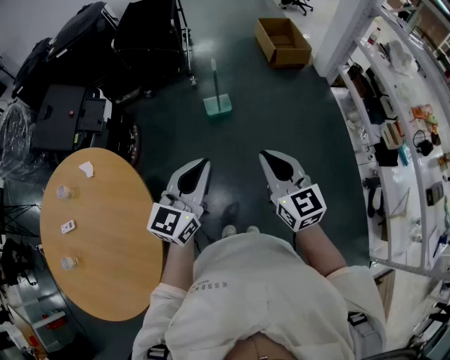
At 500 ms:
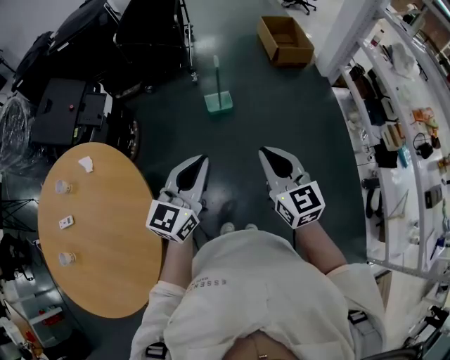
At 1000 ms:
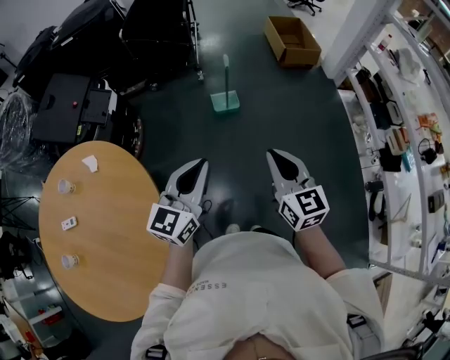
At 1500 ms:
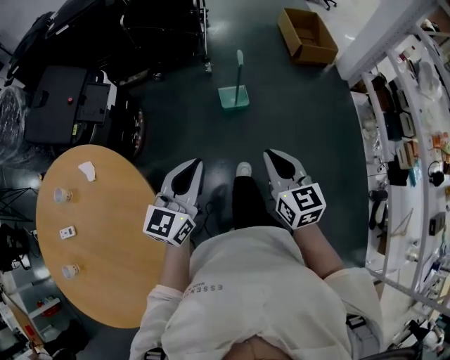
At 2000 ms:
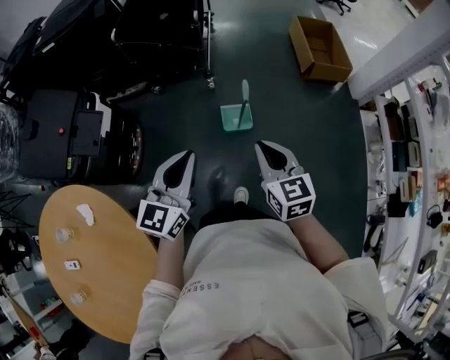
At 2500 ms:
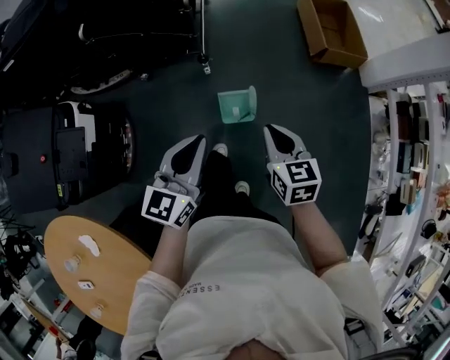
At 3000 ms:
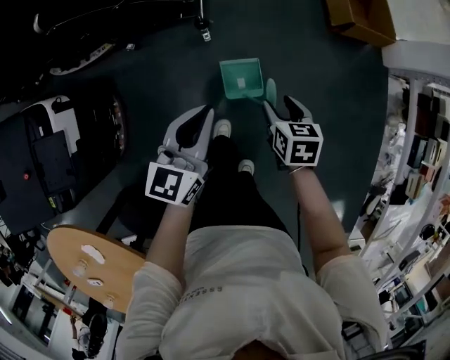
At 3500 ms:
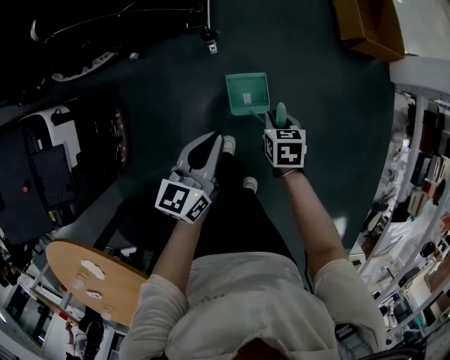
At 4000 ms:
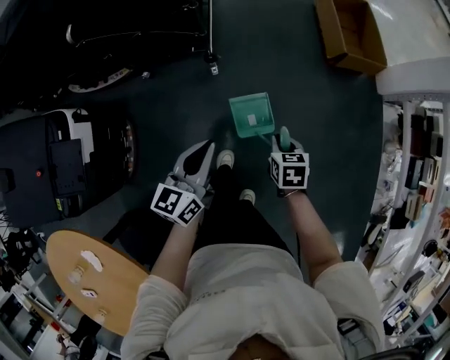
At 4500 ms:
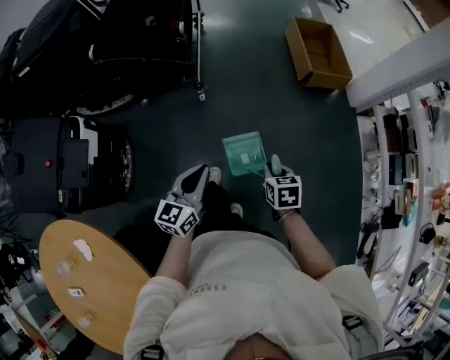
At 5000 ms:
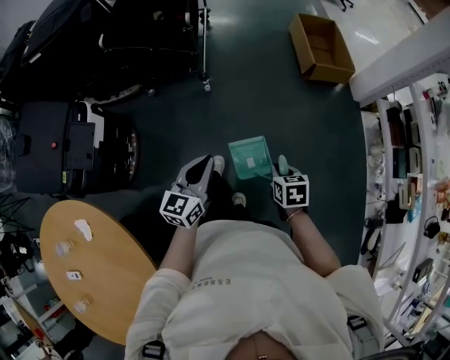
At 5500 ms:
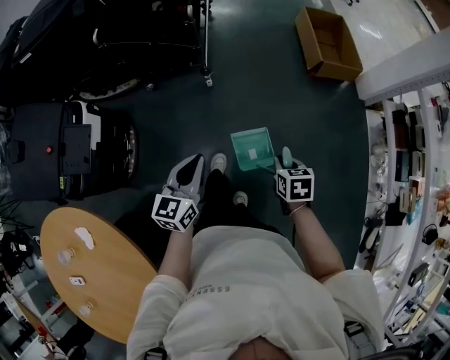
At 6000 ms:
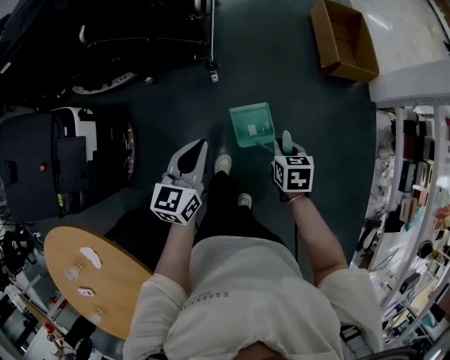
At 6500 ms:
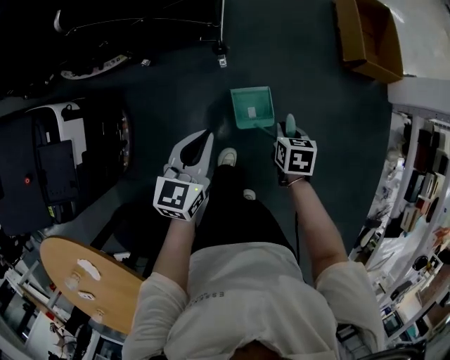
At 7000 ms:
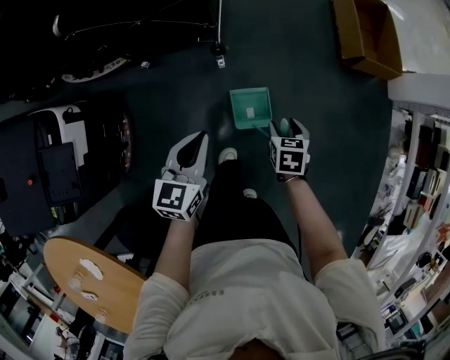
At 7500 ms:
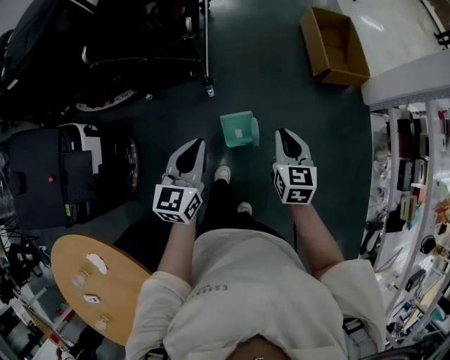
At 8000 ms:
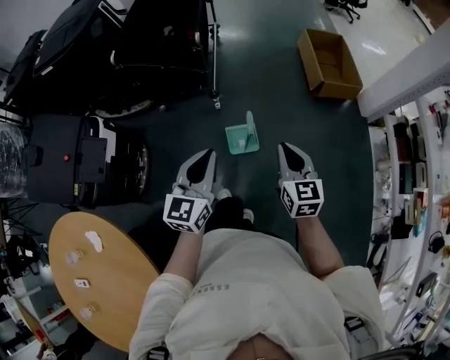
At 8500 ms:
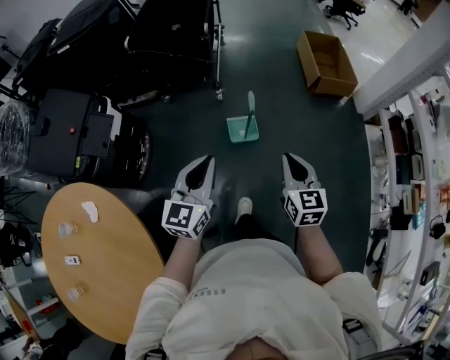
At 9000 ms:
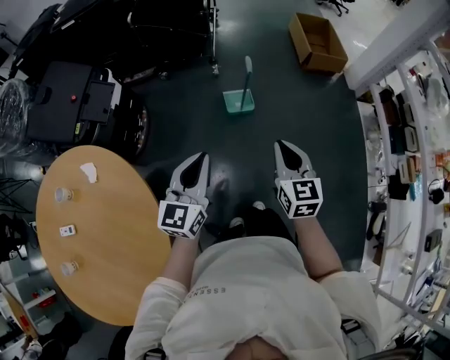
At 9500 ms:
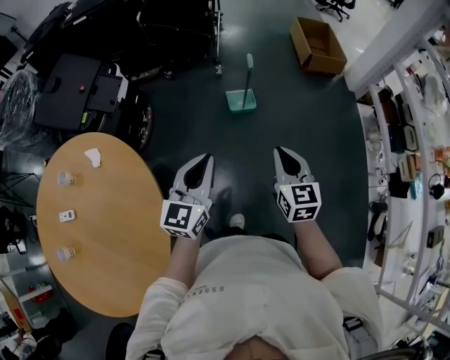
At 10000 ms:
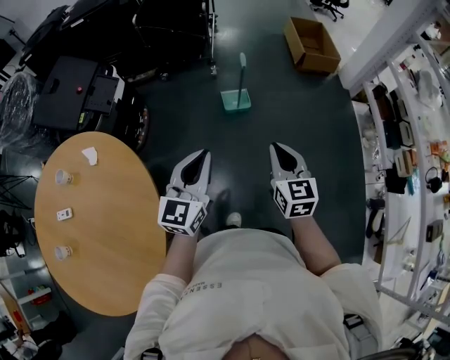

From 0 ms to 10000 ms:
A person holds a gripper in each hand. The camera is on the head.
From 0 ms to 2000 ms: Both grippers travel together forward, some 40 cm.
From 2000 ms to 4000 ms: The right gripper moves downward and forward, about 40 cm, tips its fingers downward by some 30 degrees, and opens, then closes once more, while the left gripper shifts some 35 cm forward and downward, and changes its angle by approximately 20 degrees.
From 4000 ms to 6000 ms: The left gripper travels backward and back again, some 20 cm each way, while the right gripper travels upward by approximately 5 cm, and travels backward and back again, about 20 cm each way.
From 6000 ms to 8000 ms: The left gripper heads upward, backward and to the right, covering approximately 20 cm; the right gripper heads upward and backward, covering approximately 20 cm, tips its fingers upward by some 40 degrees, and opens, then closes again.
From 8000 ms to 10000 ms: Both grippers are carried backward, about 40 cm.

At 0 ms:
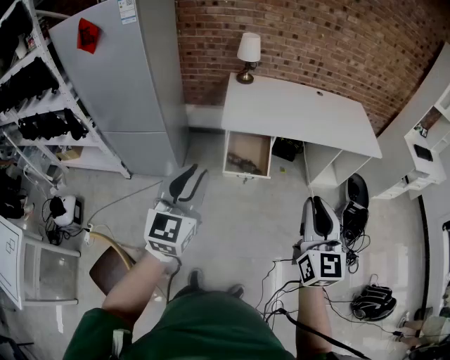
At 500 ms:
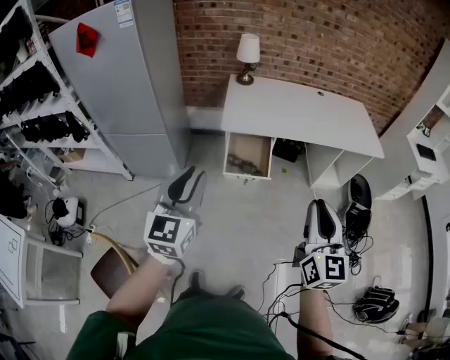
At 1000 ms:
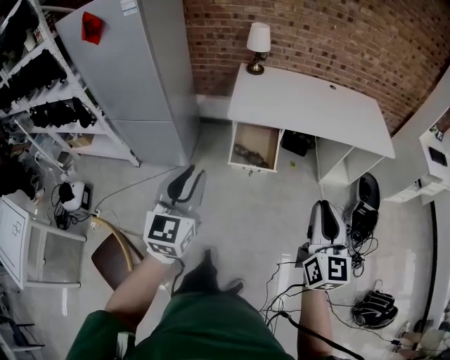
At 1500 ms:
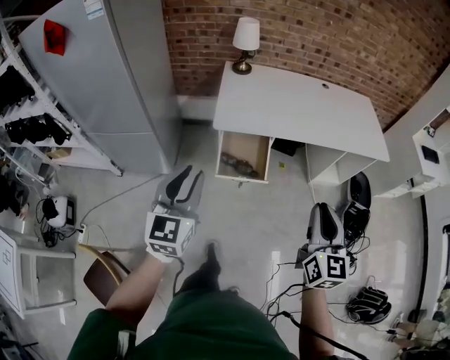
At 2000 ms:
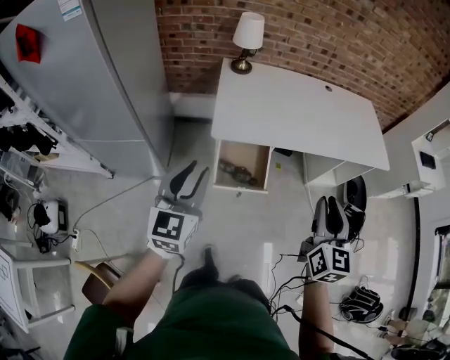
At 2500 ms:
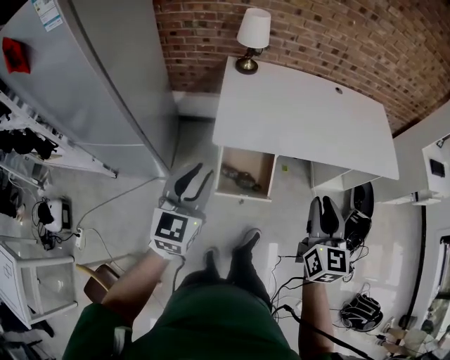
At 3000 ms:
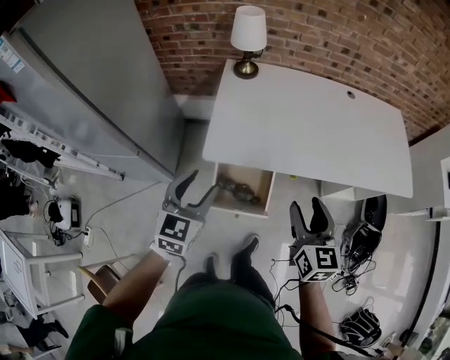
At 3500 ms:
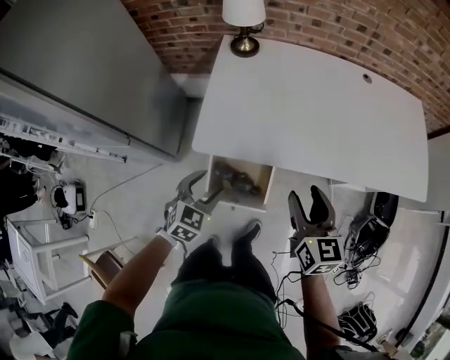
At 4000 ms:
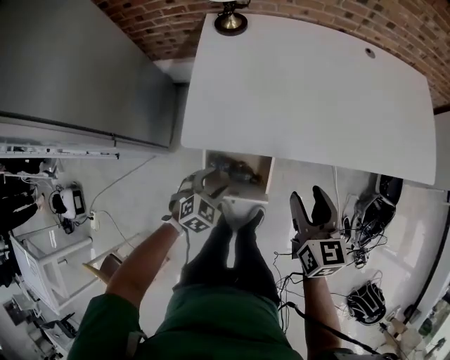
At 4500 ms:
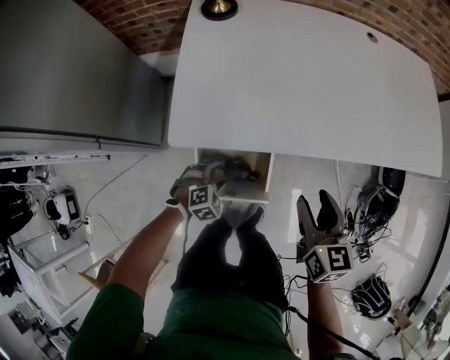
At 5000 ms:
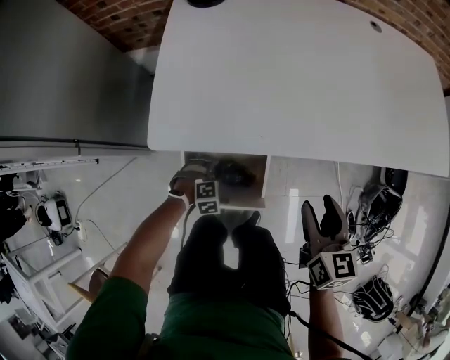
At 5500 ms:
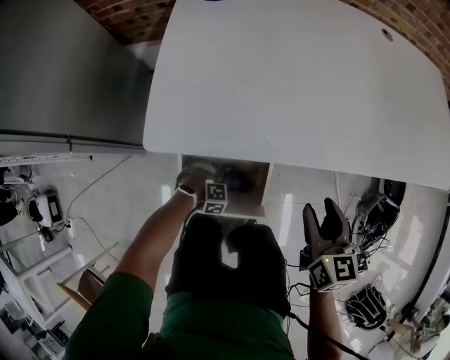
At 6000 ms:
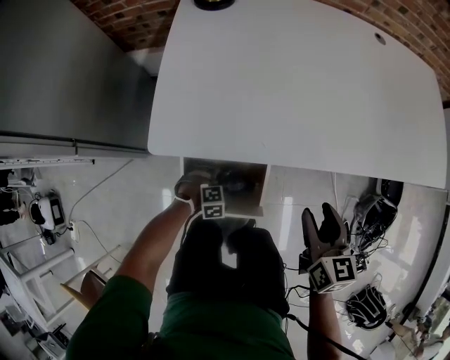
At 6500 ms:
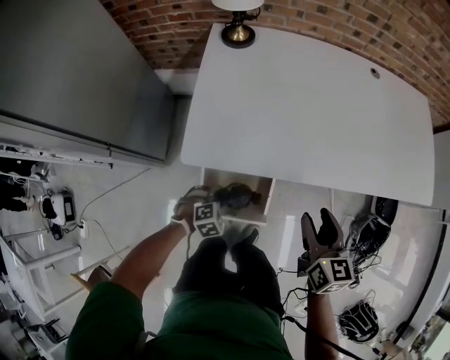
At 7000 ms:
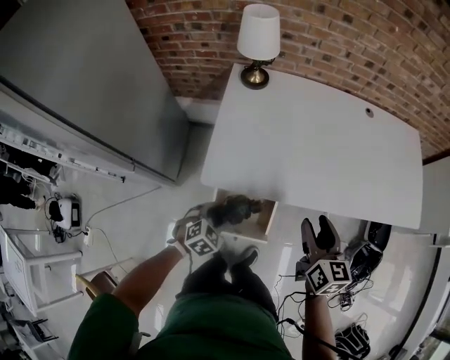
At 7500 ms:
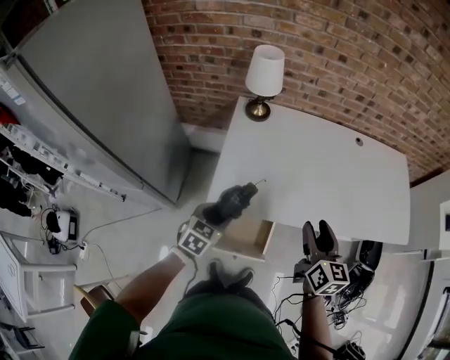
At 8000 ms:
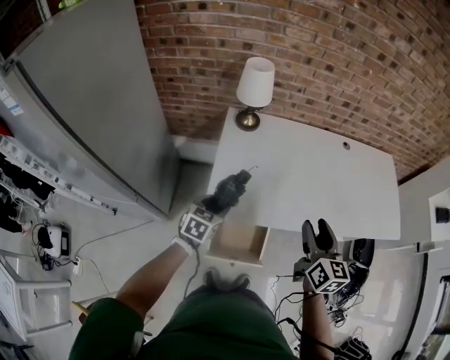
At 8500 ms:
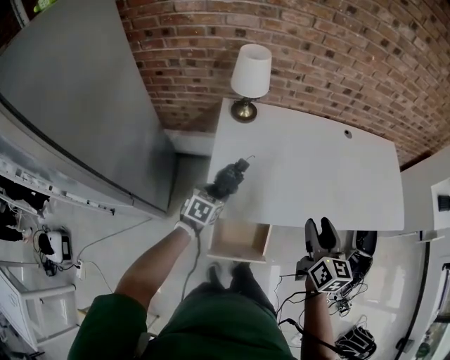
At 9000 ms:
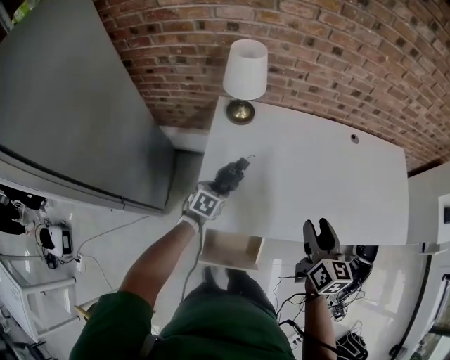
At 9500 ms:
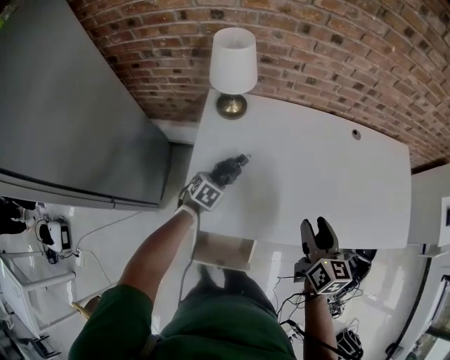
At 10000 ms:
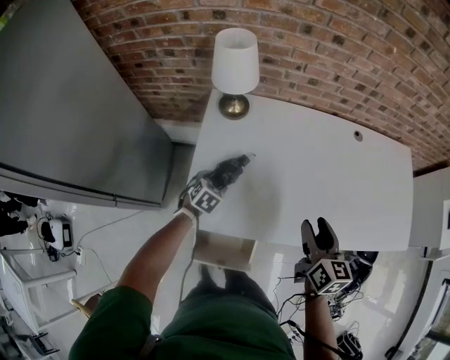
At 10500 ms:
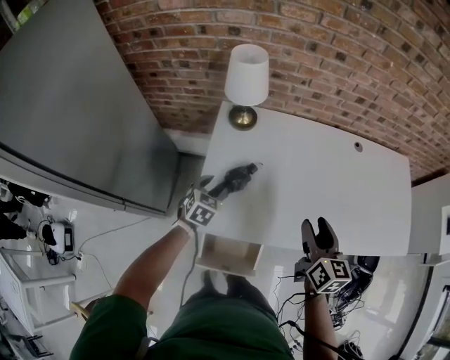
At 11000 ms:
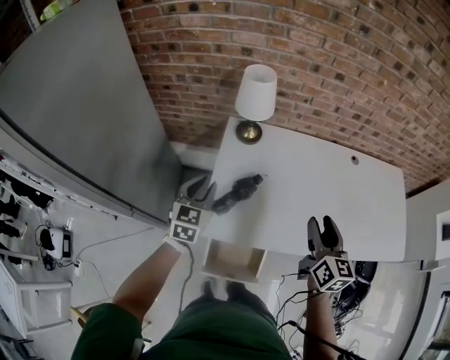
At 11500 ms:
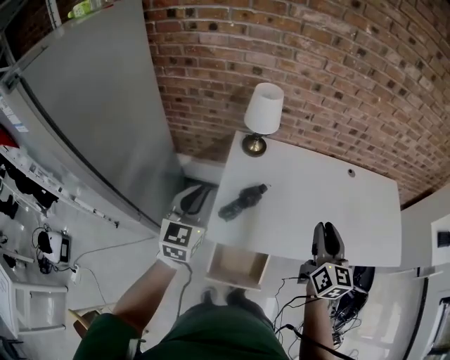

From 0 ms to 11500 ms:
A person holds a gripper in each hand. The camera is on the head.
From 0 ms to 2000 ms: The two grippers go some 25 cm forward.
From 2000 ms to 4000 ms: The left gripper travels downward, forward and to the right by about 50 cm, tips its fingers downward by approximately 50 degrees, and opens its fingers. The right gripper goes approximately 40 cm forward and downward, turns by some 30 degrees, and opens up.
From 4000 ms to 6000 ms: The left gripper shifts some 30 cm downward, and rotates about 40 degrees; the right gripper goes some 15 cm downward.
From 6000 ms to 7500 ms: The right gripper heads upward, covering roughly 30 cm. The left gripper shifts about 50 cm upward, and rolls counterclockwise, seen from behind, by roughly 50 degrees.
From 7500 ms to 9500 ms: The left gripper is displaced forward and downward by about 30 cm, and turns by approximately 20 degrees; the right gripper shifts roughly 15 cm forward and downward.
From 9500 ms to 11500 ms: The left gripper is displaced upward by approximately 35 cm, tips its fingers upward by some 50 degrees, and closes up. The right gripper is displaced upward, to the left and backward by roughly 15 cm, and closes.

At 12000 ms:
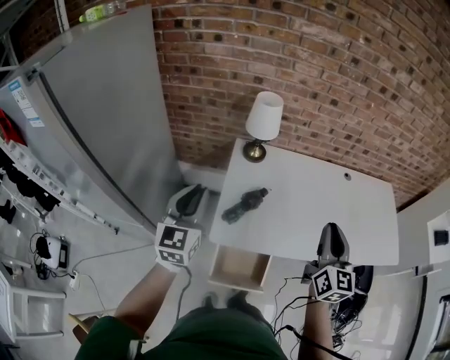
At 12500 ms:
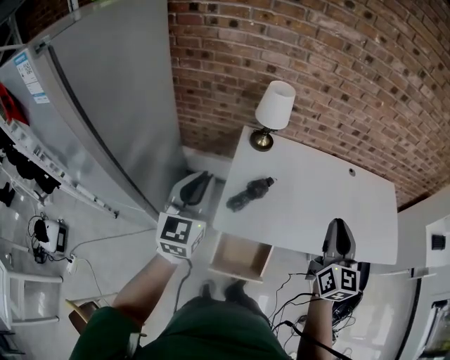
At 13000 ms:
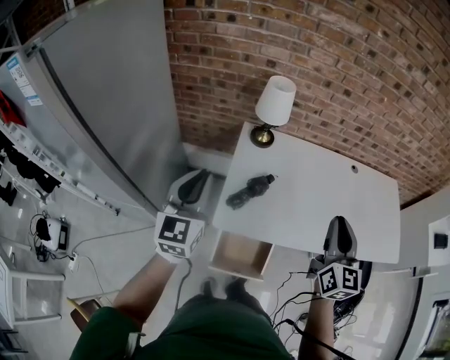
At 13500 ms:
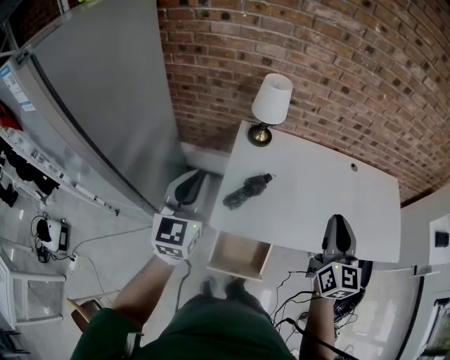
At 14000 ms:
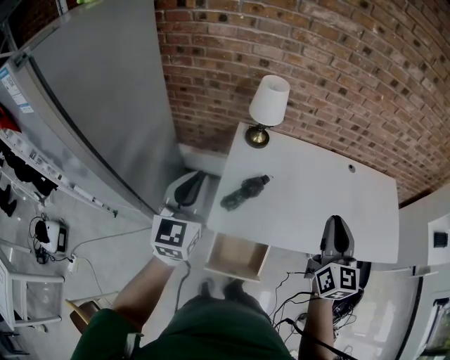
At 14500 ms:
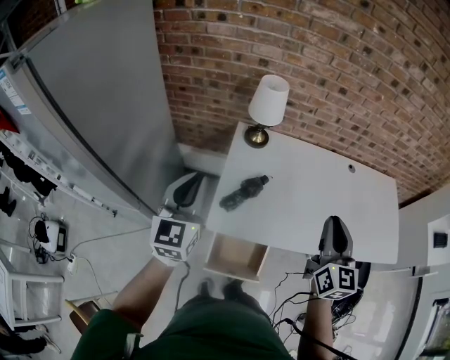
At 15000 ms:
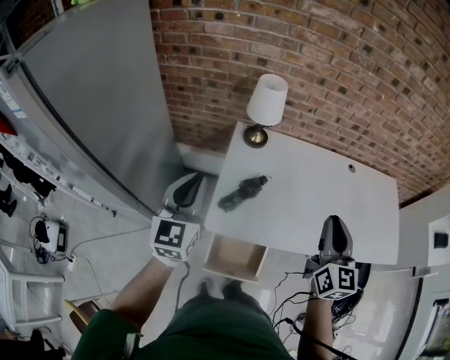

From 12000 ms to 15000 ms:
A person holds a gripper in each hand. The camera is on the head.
From 12000 ms to 15000 ms: The grippers stay close to where they were, moving slightly.

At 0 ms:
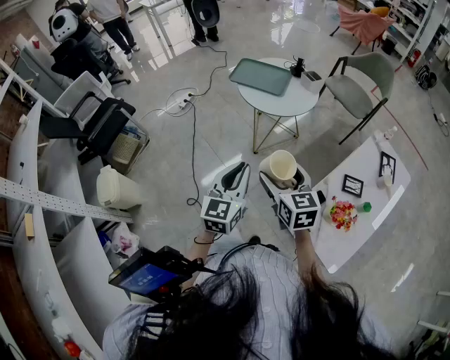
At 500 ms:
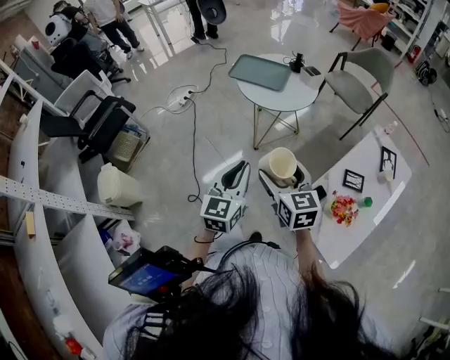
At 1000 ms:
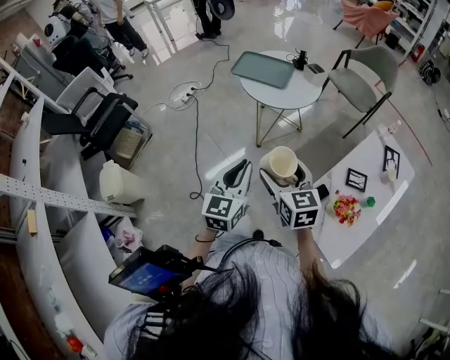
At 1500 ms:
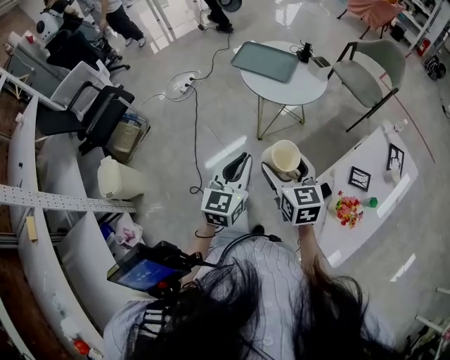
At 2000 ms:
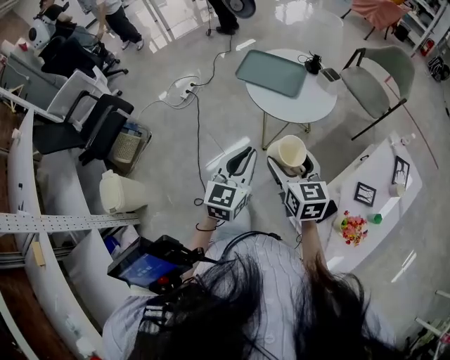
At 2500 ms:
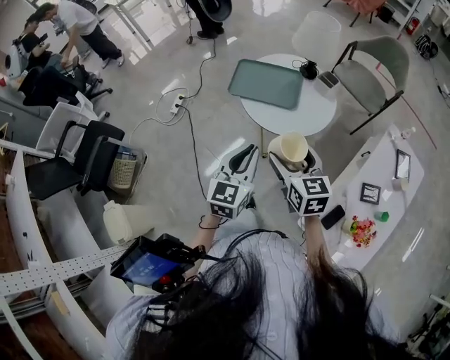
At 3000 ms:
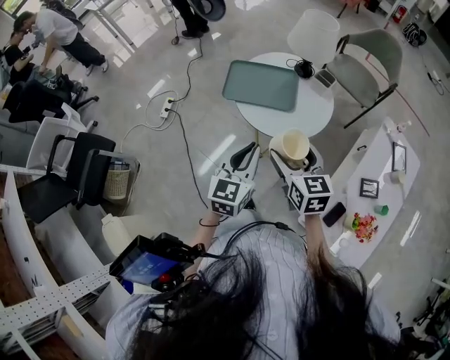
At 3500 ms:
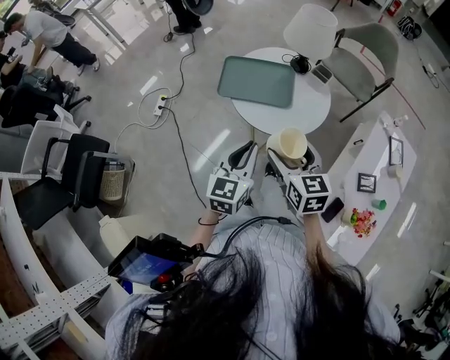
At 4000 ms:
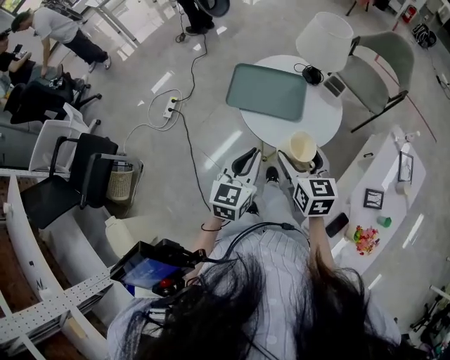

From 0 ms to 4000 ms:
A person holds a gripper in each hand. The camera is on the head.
From 0 ms to 2000 ms: The grippers both shift forward by approximately 15 cm.
From 2000 ms to 4000 ms: The grippers both shift forward by approximately 20 cm.
